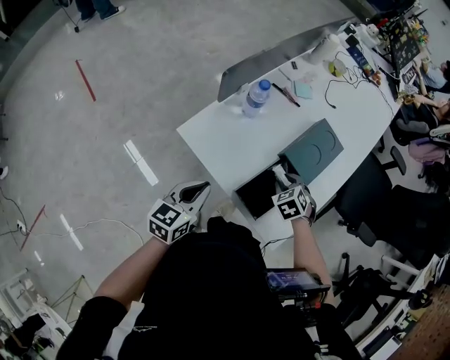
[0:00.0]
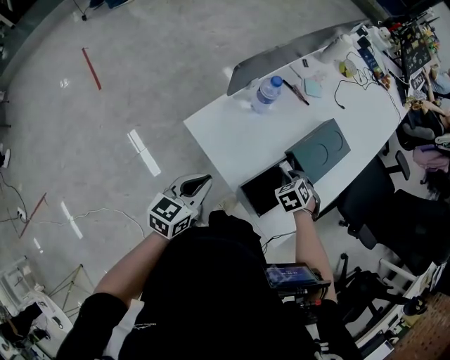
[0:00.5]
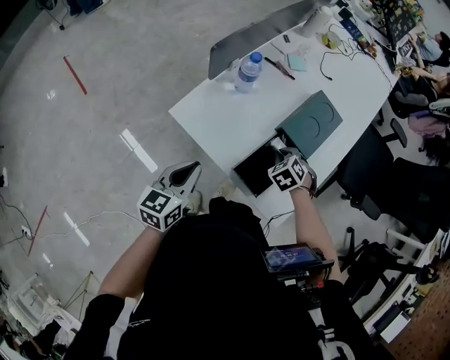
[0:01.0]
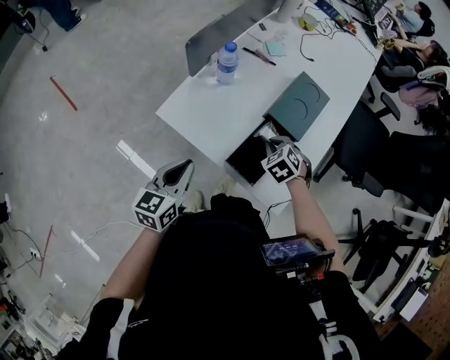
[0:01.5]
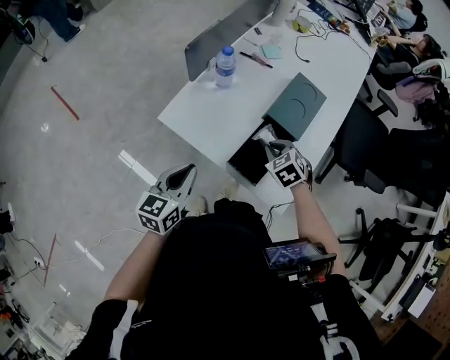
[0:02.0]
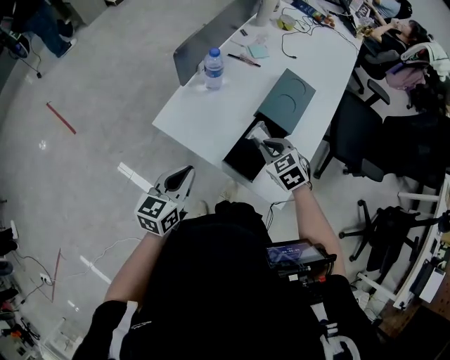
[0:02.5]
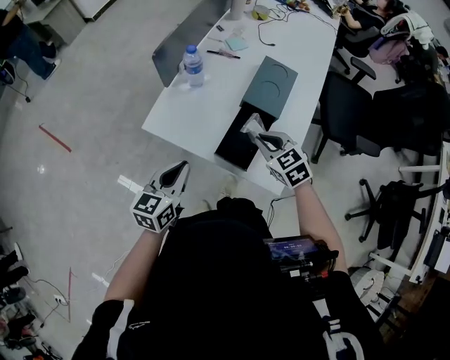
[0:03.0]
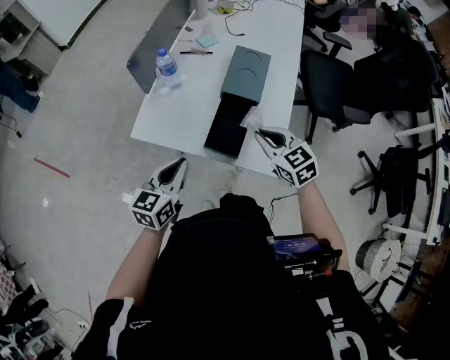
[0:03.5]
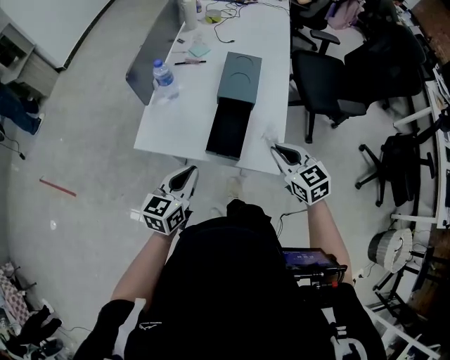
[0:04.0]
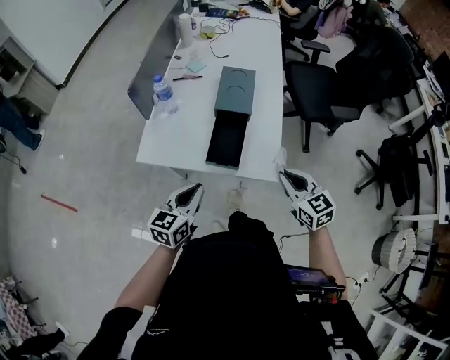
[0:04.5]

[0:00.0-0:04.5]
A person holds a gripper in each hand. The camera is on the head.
0:00.0 to 0:02.0: The right gripper closes up.
0:02.0 to 0:04.5: The right gripper moves backward, upward and to the right, some 25 cm, and angles its fingers upward, by some 40 degrees, while the left gripper moves to the right and backward, about 10 cm, and swivels approximately 30 degrees.

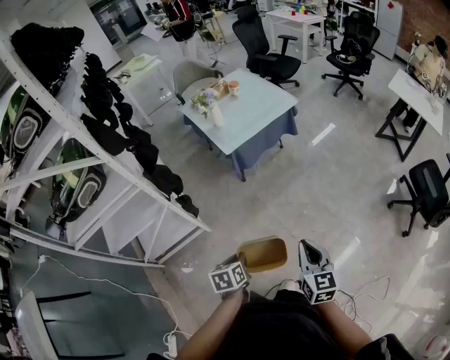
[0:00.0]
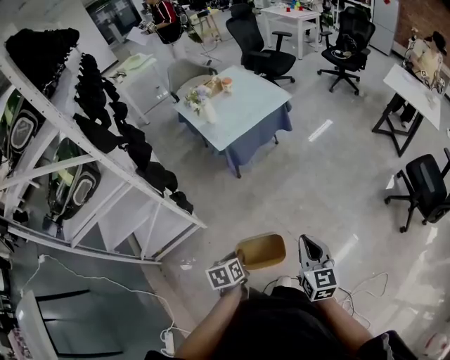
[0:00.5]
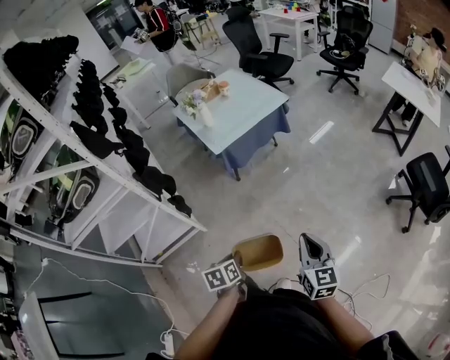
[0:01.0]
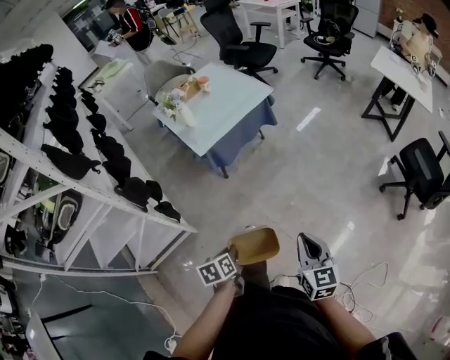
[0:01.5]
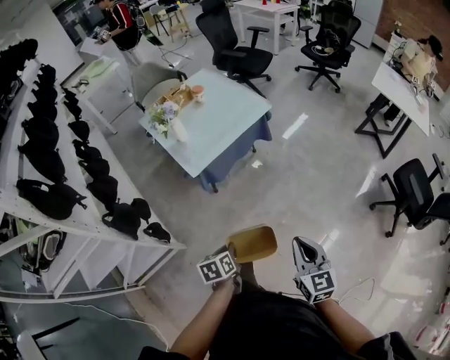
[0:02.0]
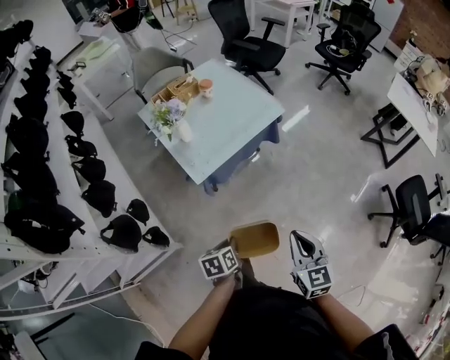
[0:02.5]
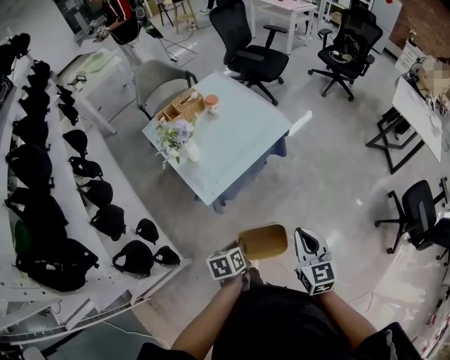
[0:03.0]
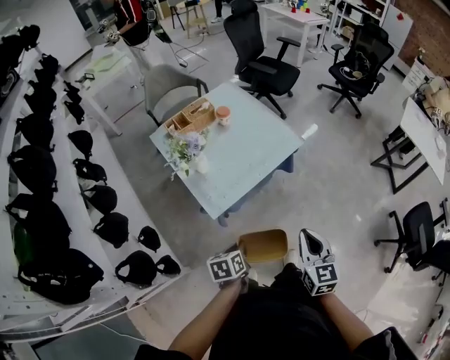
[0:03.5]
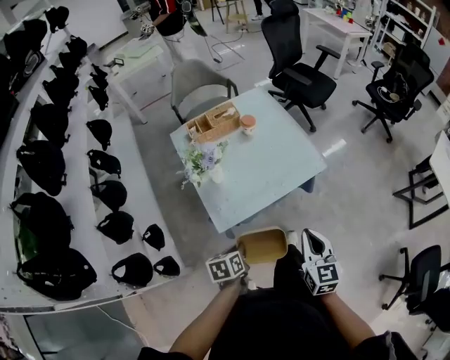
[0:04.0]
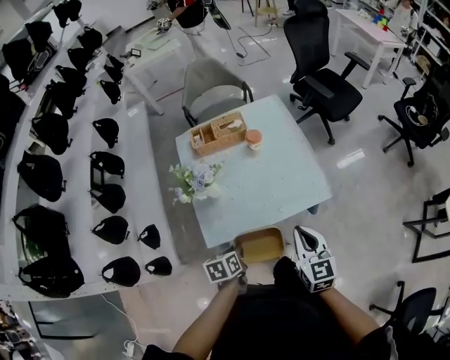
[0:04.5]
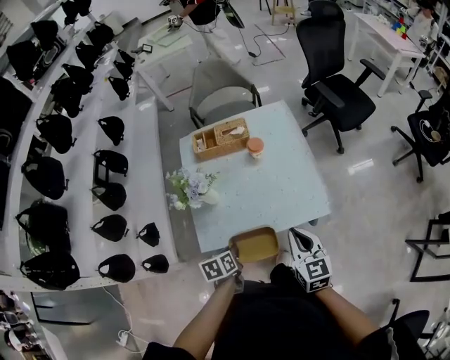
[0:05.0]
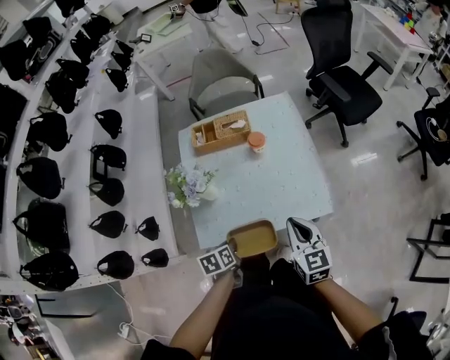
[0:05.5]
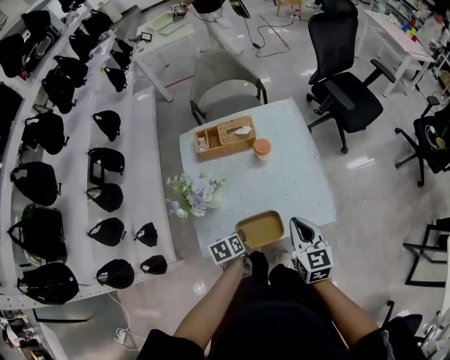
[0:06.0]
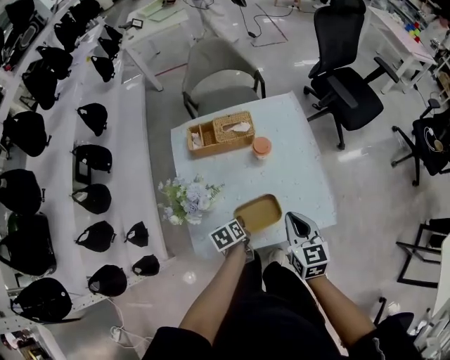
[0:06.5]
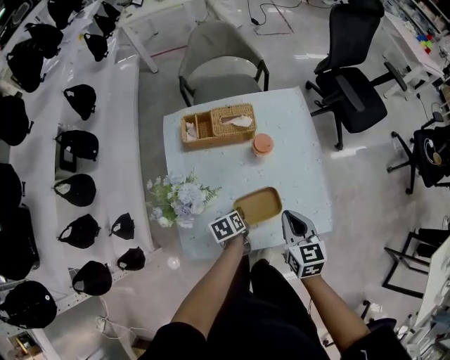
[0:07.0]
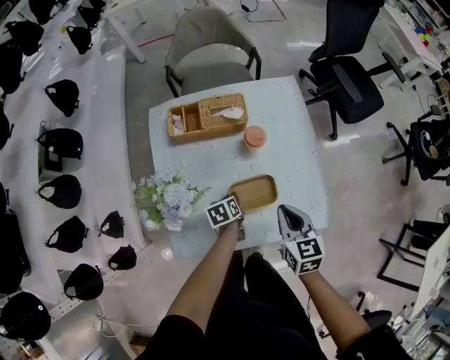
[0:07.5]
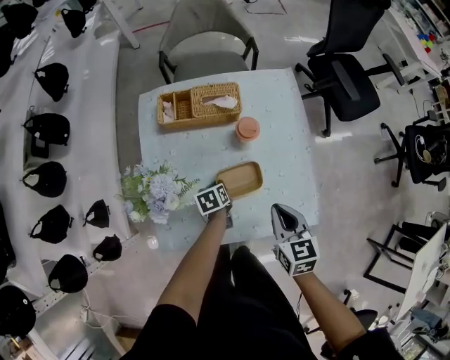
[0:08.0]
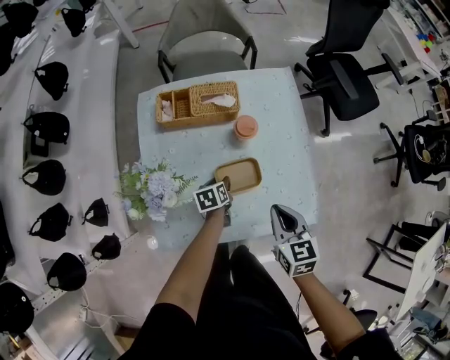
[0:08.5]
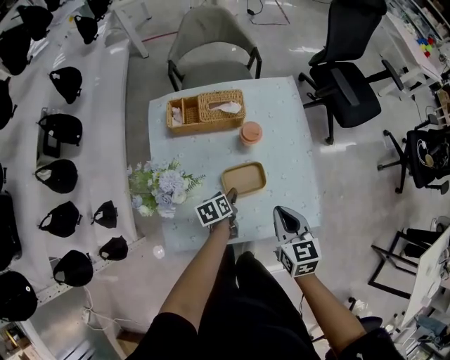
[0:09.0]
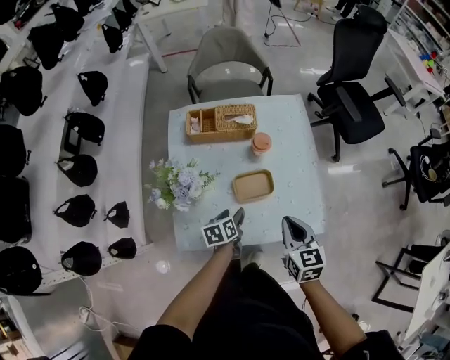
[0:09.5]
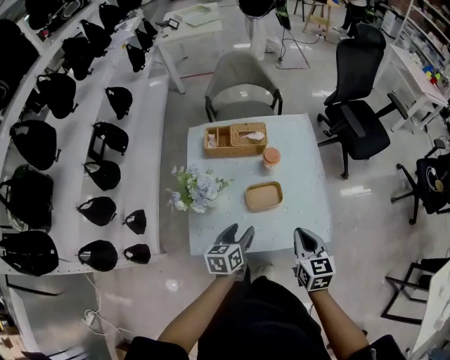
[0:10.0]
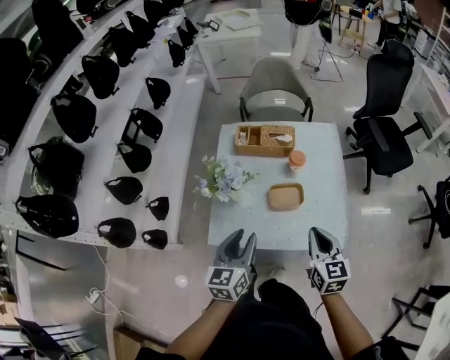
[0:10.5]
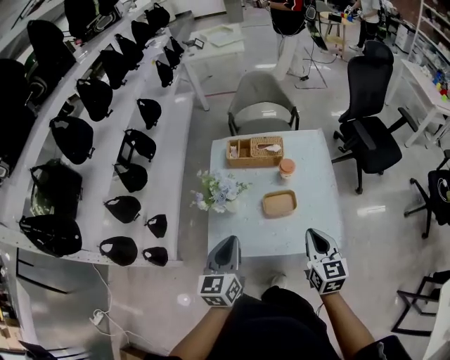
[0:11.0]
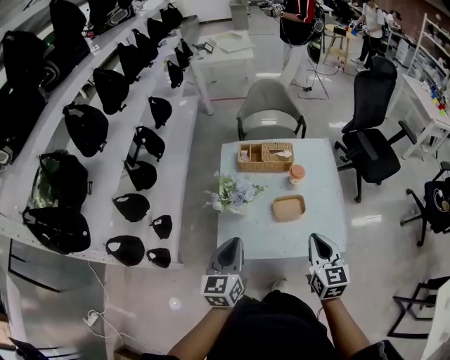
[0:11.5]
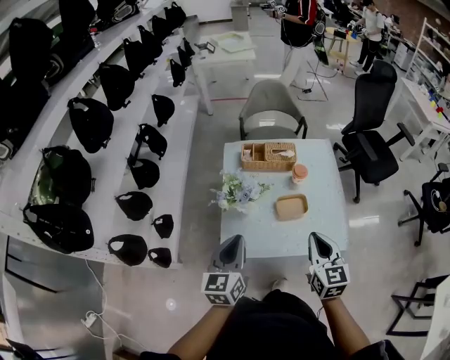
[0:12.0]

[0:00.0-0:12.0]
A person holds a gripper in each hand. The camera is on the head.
0:00.0 to 0:02.0: The two grippers go about 20 cm forward.
0:02.0 to 0:04.0: The two grippers go roughly 40 cm forward.
0:04.0 to 0:06.0: The right gripper changes place by approximately 30 cm, and rotates approximately 20 degrees; the left gripper moves about 30 cm, and changes its angle by about 20 degrees.
0:06.0 to 0:08.0: The left gripper goes some 25 cm forward and downward. The right gripper moves downward and forward, roughly 15 cm.
0:08.0 to 0:10.0: The right gripper shifts roughly 15 cm backward and upward. The left gripper travels upward and backward by about 30 cm, swivels about 30 degrees, and opens.
0:10.0 to 0:12.0: The left gripper is displaced upward and to the left by approximately 25 cm, rotates roughly 30 degrees, and closes up; the right gripper goes some 15 cm upward and to the left.

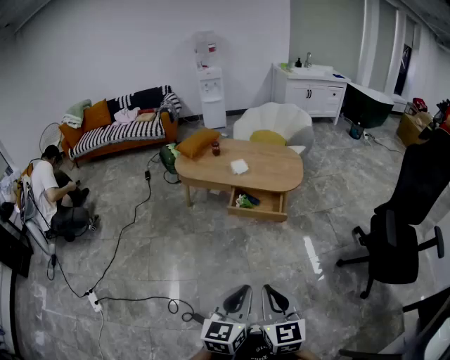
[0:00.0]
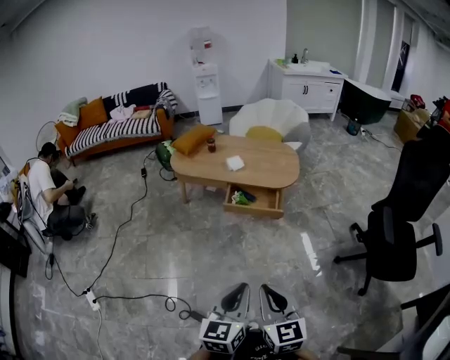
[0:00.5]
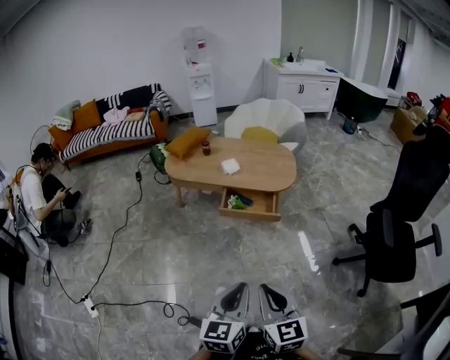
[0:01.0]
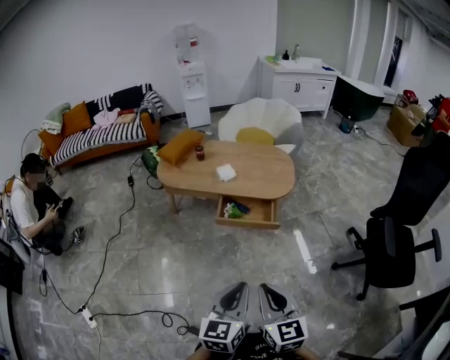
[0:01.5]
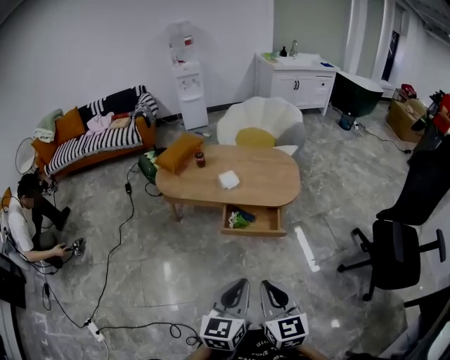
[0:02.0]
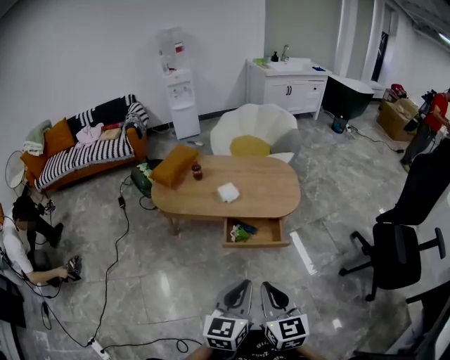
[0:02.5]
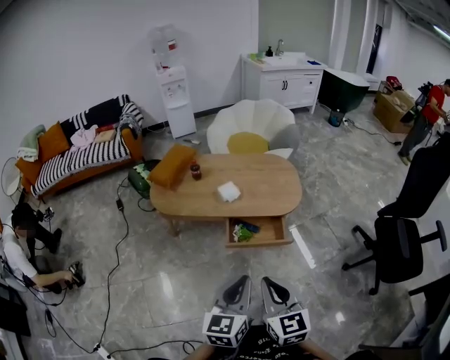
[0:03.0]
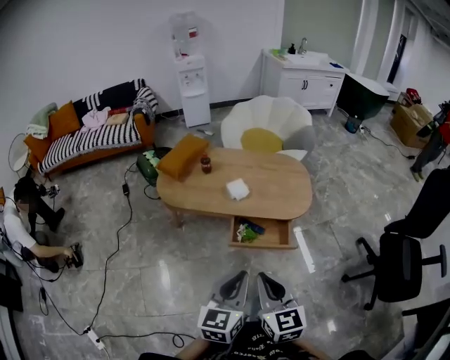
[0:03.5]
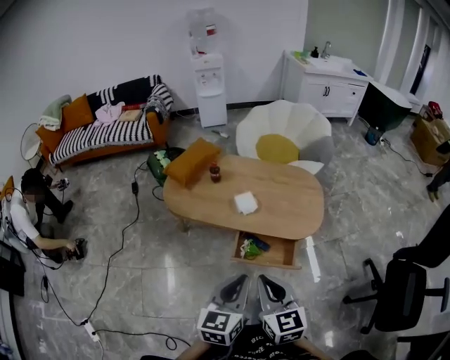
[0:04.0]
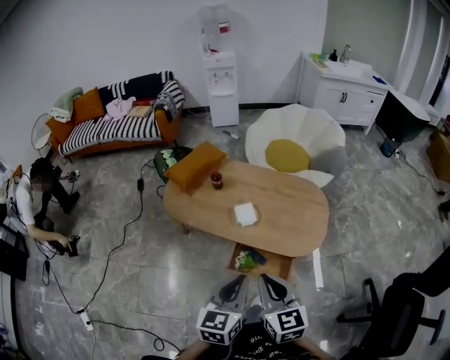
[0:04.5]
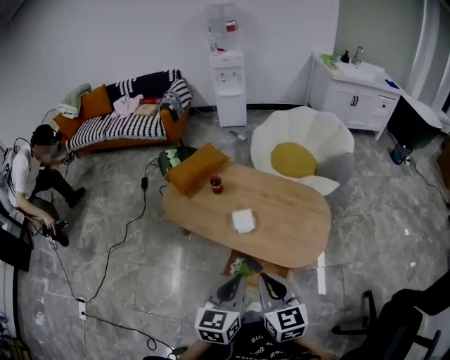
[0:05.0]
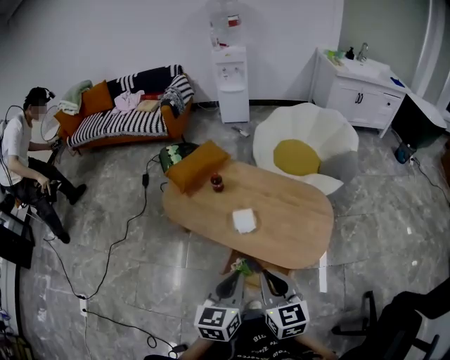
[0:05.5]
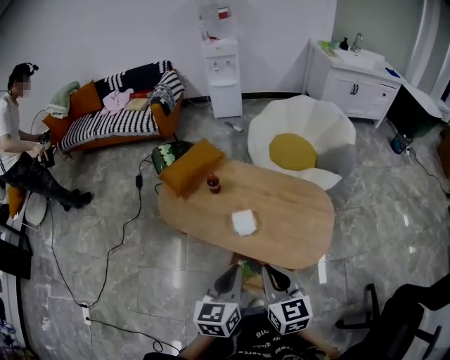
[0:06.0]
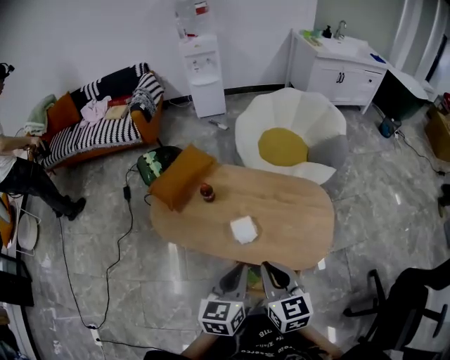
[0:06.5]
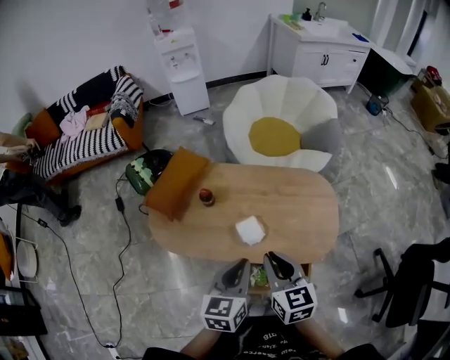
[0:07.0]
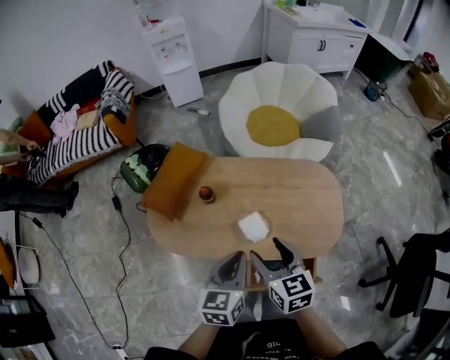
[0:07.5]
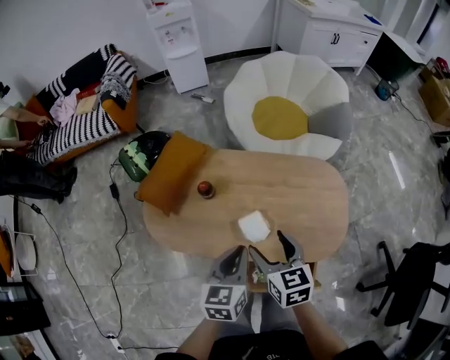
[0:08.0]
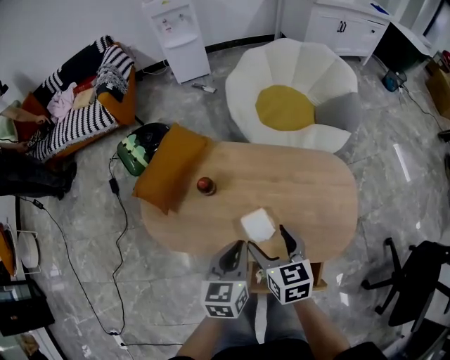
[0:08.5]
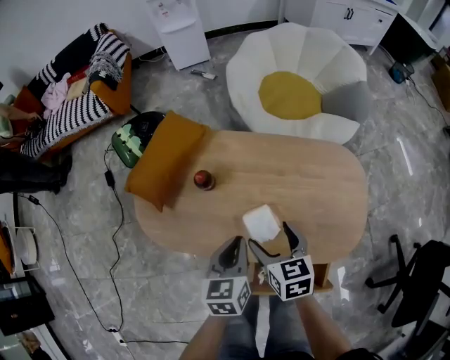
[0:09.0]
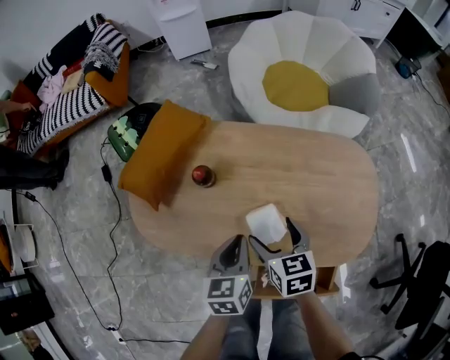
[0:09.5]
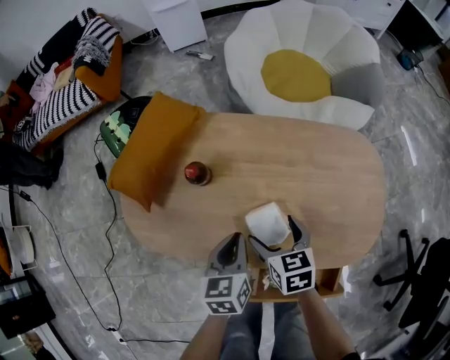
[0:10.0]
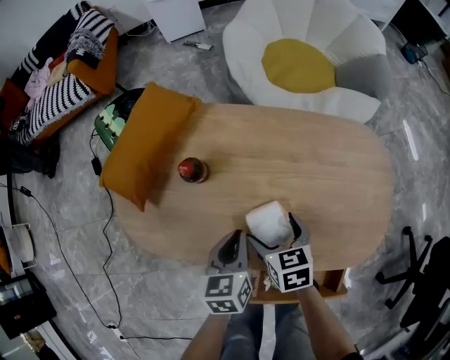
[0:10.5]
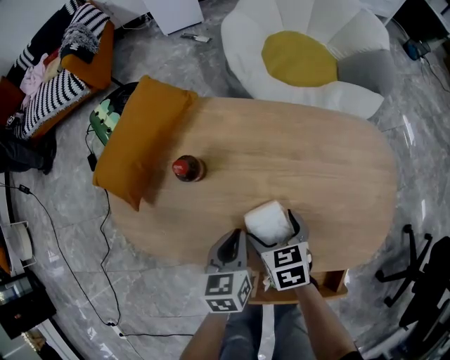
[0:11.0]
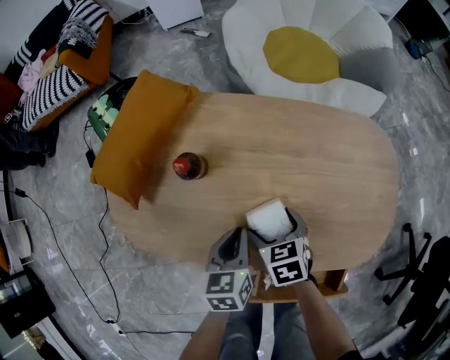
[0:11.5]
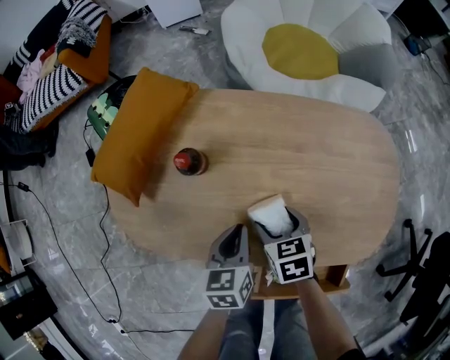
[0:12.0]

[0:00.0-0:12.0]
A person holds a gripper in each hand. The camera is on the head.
0:00.0 to 0:02.0: The two grippers go about 20 cm forward.
0:02.0 to 0:04.0: Both grippers move forward, about 20 cm.
0:04.0 to 0:06.0: The right gripper goes roughly 20 cm forward and to the right; the left gripper goes some 20 cm forward.
0:06.0 to 0:08.0: The right gripper goes about 20 cm forward, downward and to the left, and opens up; the left gripper shifts roughly 20 cm forward and downward.
0:08.0 to 0:10.0: Both grippers travel together downward, approximately 20 cm.
0:10.0 to 0:12.0: Both grippers travel together downward, approximately 5 cm.
